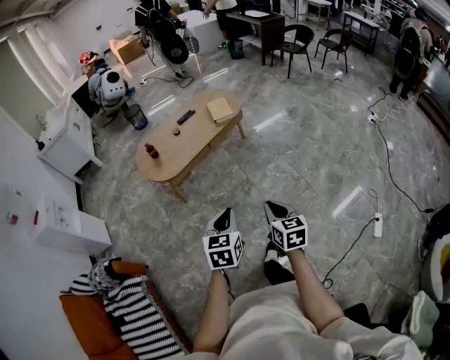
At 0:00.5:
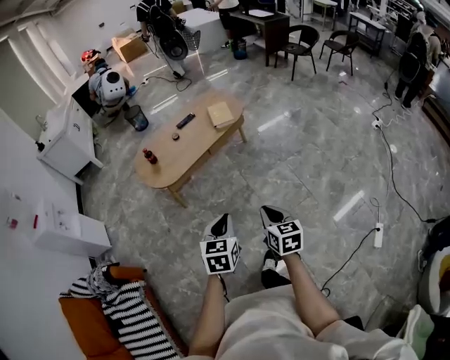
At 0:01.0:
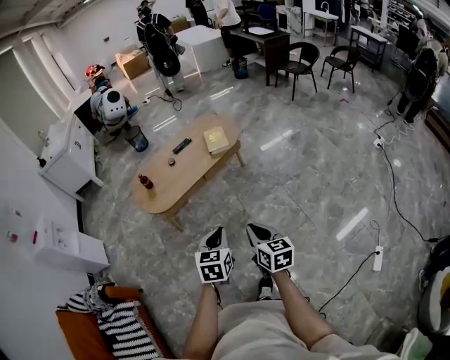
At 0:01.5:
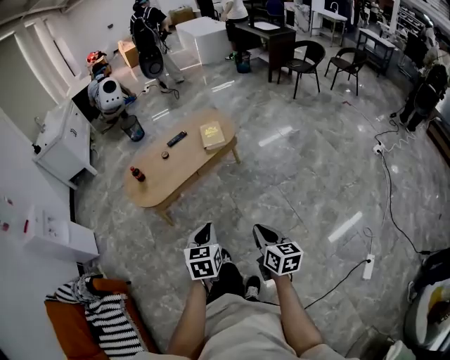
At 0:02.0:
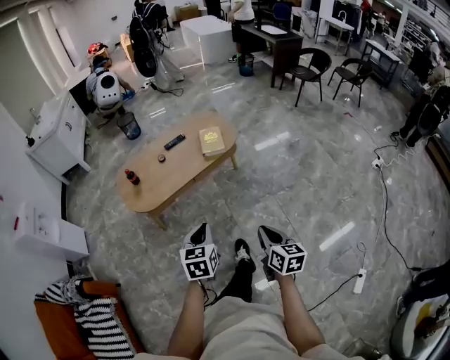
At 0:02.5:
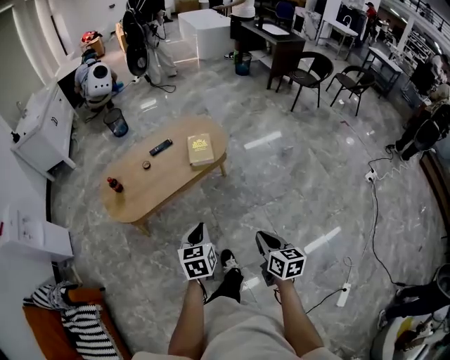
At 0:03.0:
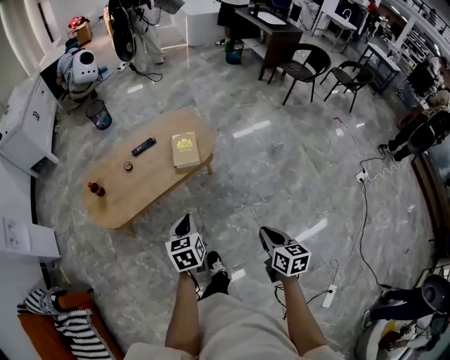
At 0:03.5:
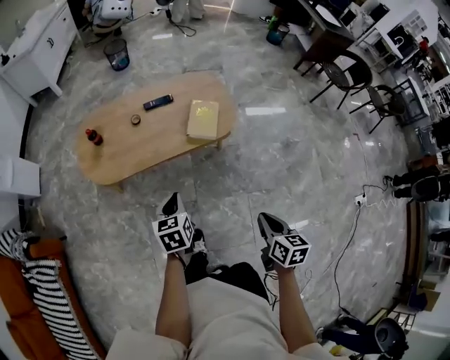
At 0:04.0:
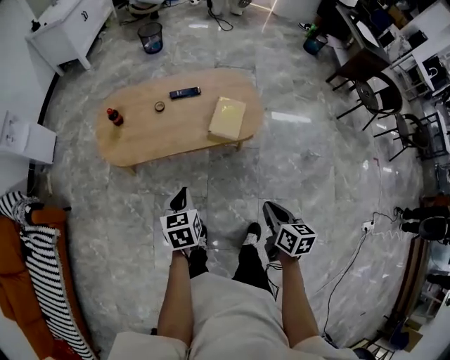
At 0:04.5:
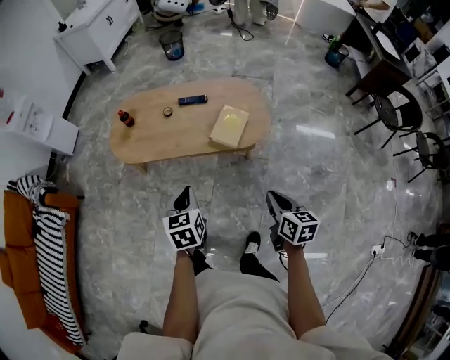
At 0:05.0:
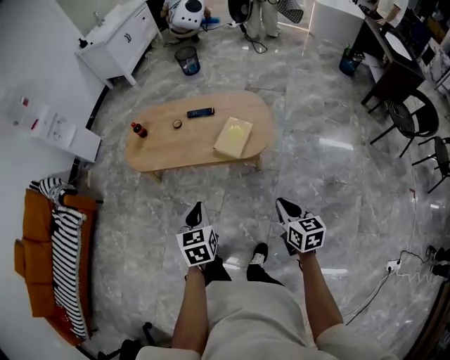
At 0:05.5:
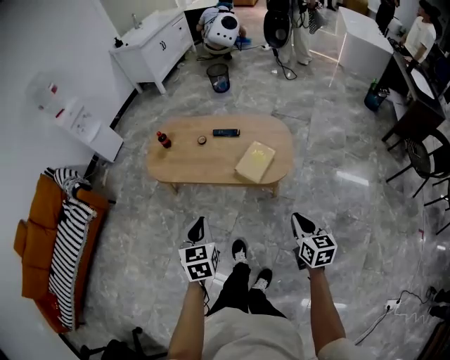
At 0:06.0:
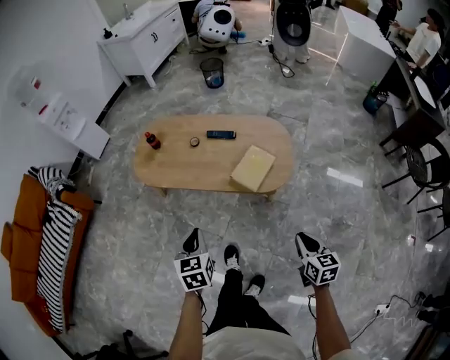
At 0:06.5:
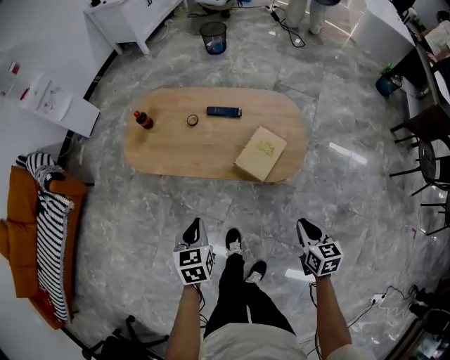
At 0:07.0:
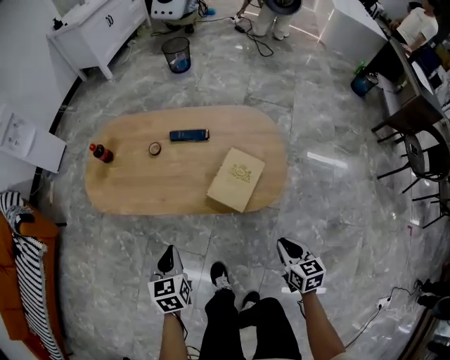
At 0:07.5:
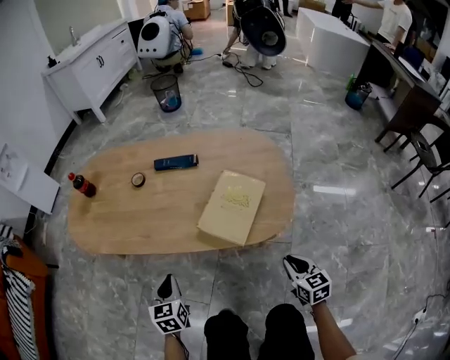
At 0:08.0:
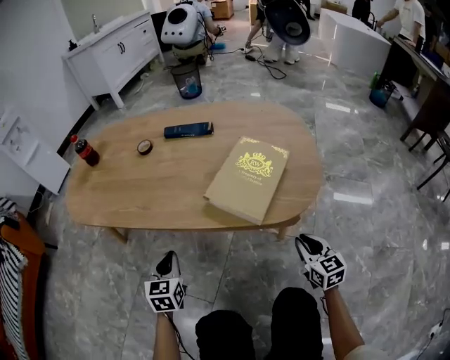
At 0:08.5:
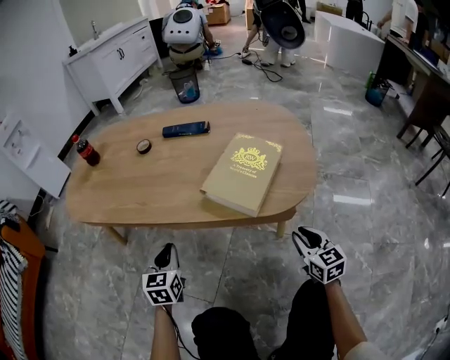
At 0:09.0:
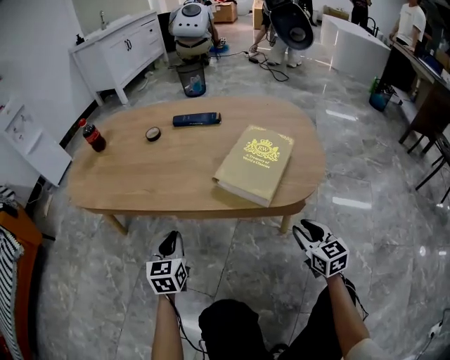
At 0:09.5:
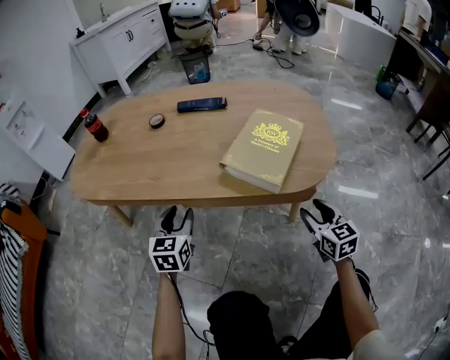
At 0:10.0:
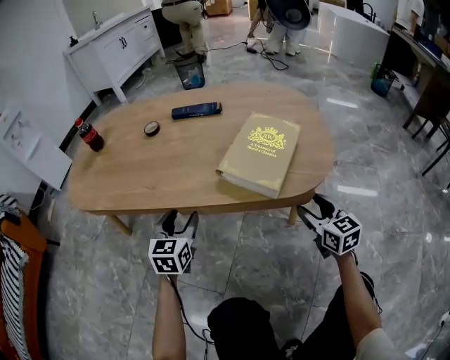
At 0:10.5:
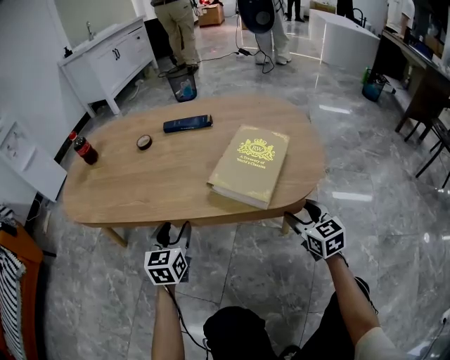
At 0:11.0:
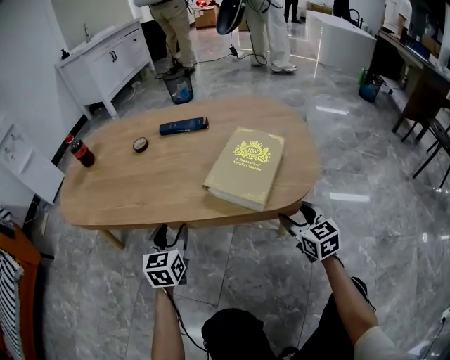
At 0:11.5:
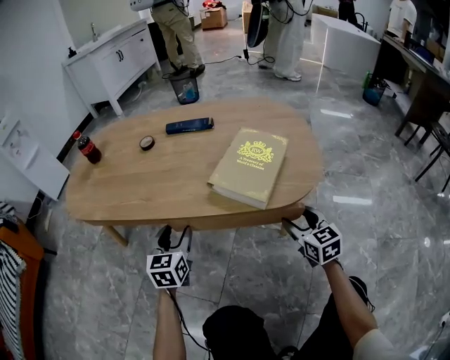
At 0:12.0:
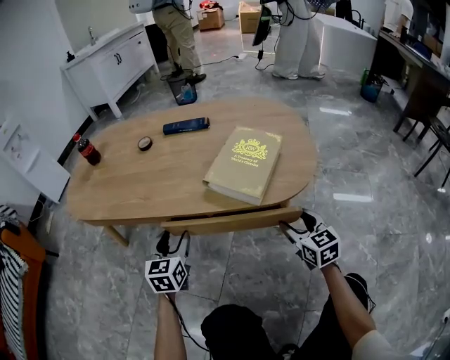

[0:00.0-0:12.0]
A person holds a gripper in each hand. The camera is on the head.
0:00.0 to 0:02.0: Both grippers travel together forward and to the right, some 25 cm.
0:02.0 to 0:04.0: The right gripper travels forward and to the right by some 35 cm, and changes its angle by approximately 30 degrees. Meanwhile the left gripper shifts roughly 30 cm forward, and rotates approximately 30 degrees.
0:04.0 to 0:06.0: The right gripper goes about 20 cm to the right, and turns by roughly 30 degrees. The left gripper is displaced to the right by about 10 cm, and turns by roughly 20 degrees.
0:06.0 to 0:08.0: The left gripper shifts about 50 cm downward. Meanwhile the right gripper shifts approximately 50 cm downward and forward.
0:08.0 to 0:10.0: The right gripper changes place by approximately 5 cm, and opens. Meanwhile the left gripper travels forward by some 5 cm, and opens.
0:10.0 to 0:12.0: The grippers make only small movements.

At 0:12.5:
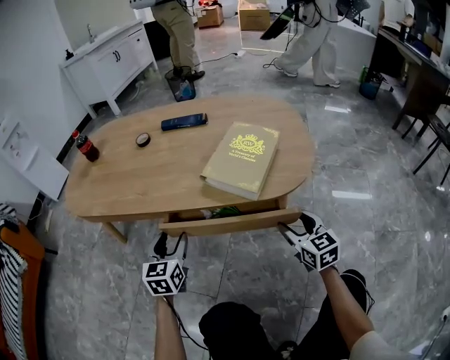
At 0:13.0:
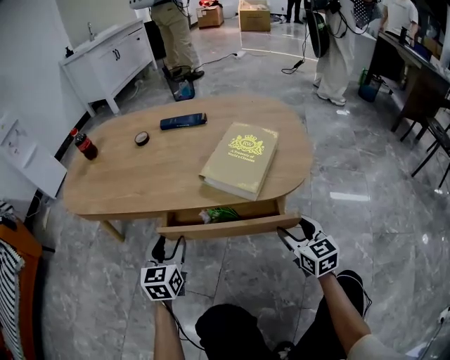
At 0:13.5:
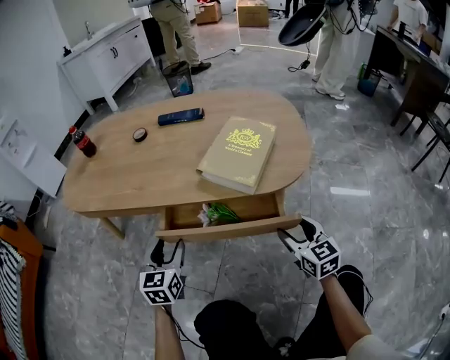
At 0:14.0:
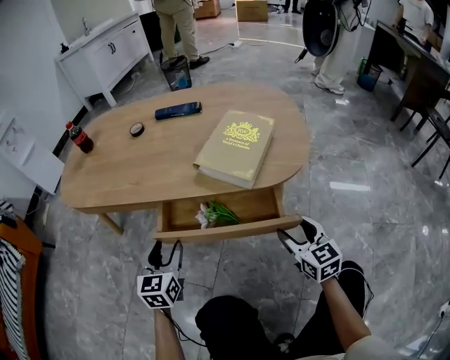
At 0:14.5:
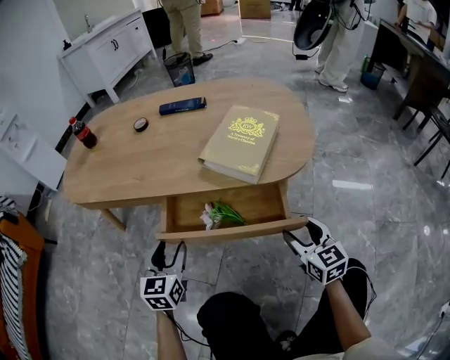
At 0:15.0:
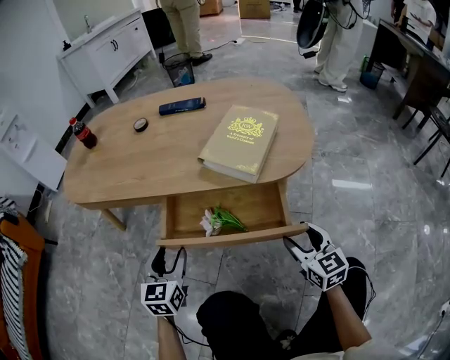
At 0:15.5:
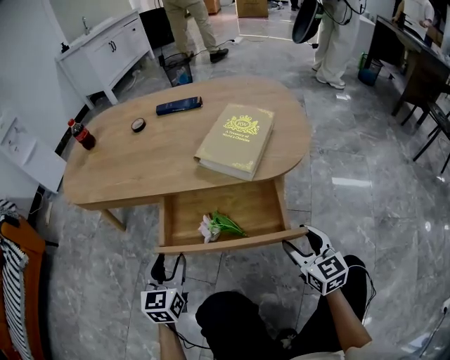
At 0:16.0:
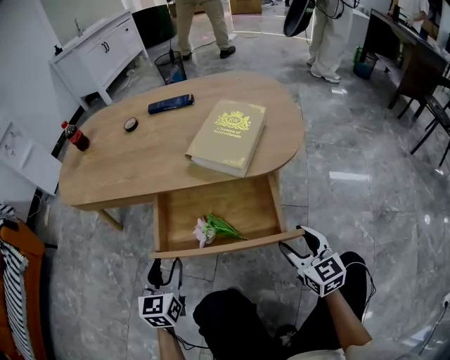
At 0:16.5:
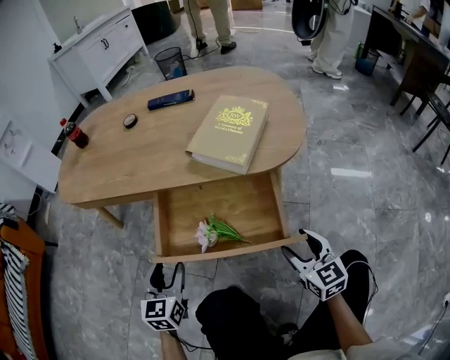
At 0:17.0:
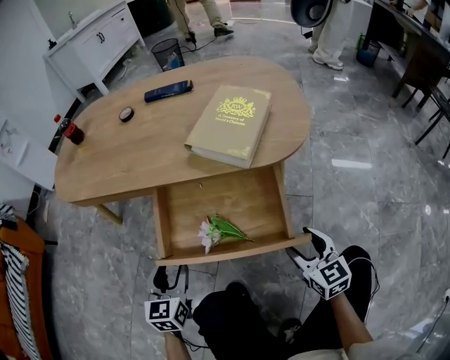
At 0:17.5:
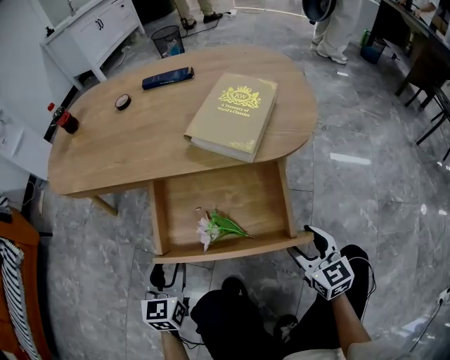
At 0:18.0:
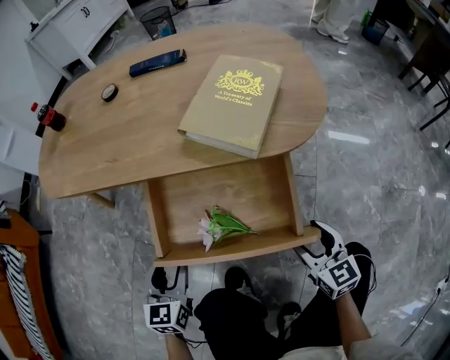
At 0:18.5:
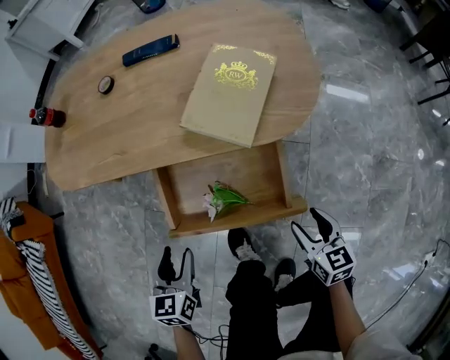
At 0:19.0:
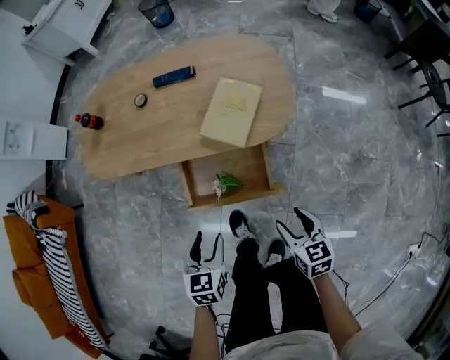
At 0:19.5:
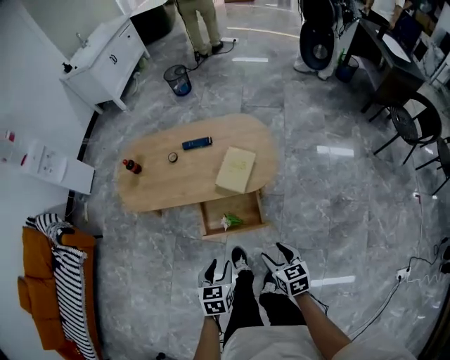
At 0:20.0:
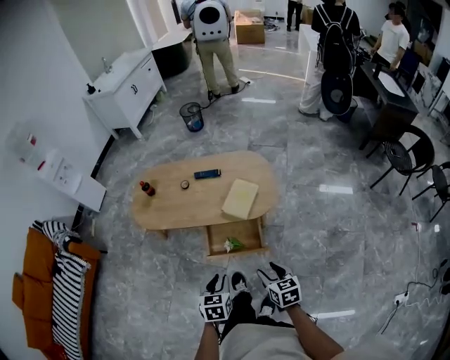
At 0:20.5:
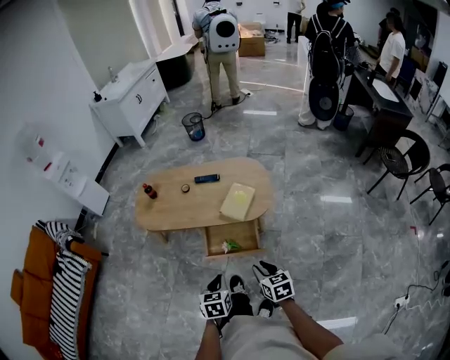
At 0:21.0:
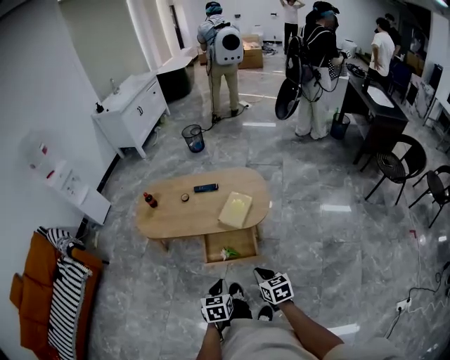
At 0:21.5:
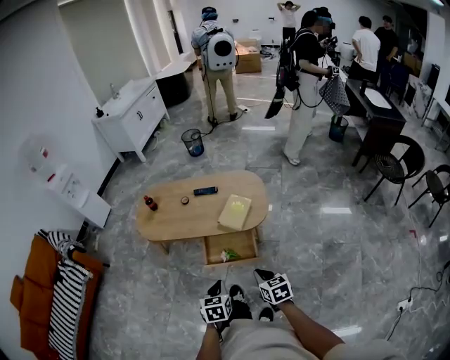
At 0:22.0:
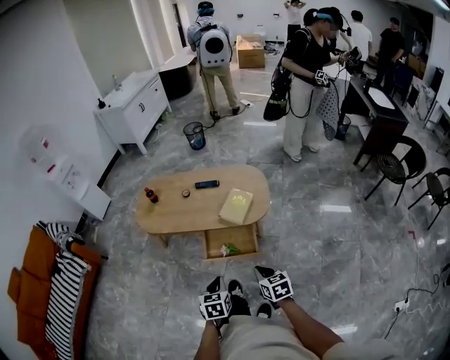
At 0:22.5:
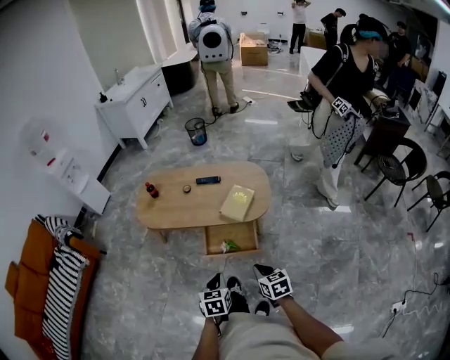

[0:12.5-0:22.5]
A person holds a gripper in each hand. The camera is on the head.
0:12.5 to 0:14.5: Both grippers move backward, some 5 cm.
0:14.5 to 0:16.5: Both grippers travel together backward, some 5 cm.
0:16.5 to 0:18.5: The left gripper goes roughly 5 cm upward; the right gripper changes its angle by roughly 20 degrees.
0:18.5 to 0:20.5: The left gripper moves upward and backward, roughly 40 cm, and closes up. The right gripper travels upward by approximately 40 cm, and closes up.
0:20.5 to 0:22.5: The right gripper closes up.

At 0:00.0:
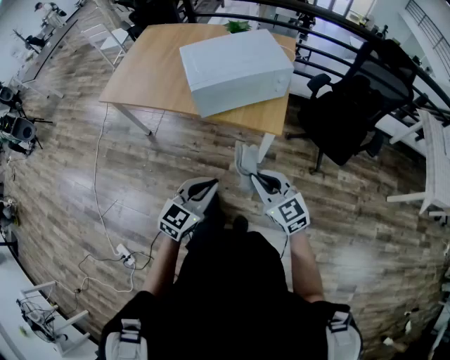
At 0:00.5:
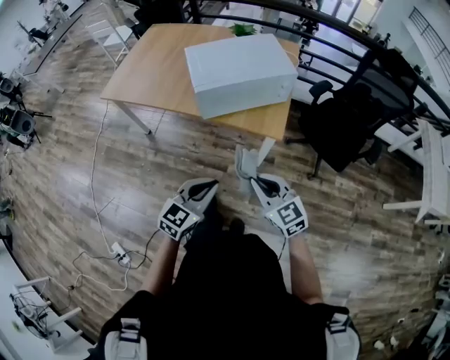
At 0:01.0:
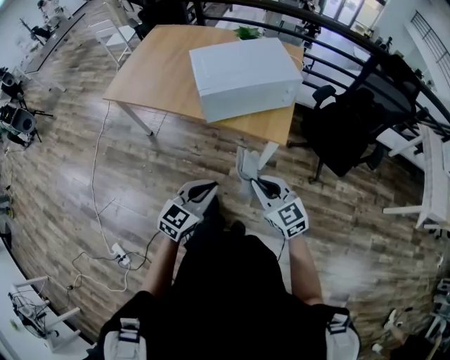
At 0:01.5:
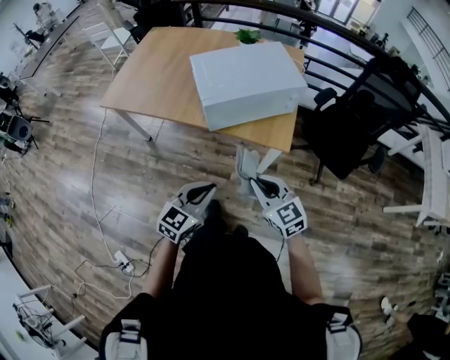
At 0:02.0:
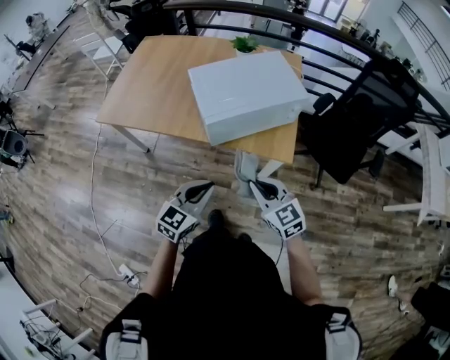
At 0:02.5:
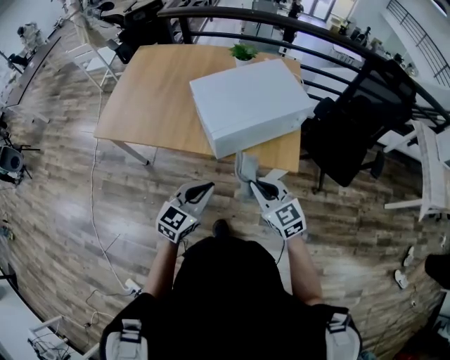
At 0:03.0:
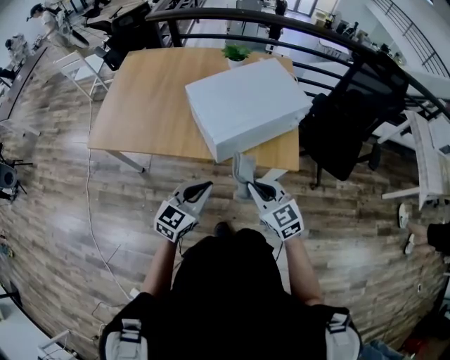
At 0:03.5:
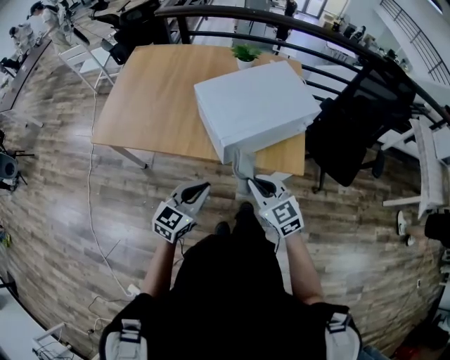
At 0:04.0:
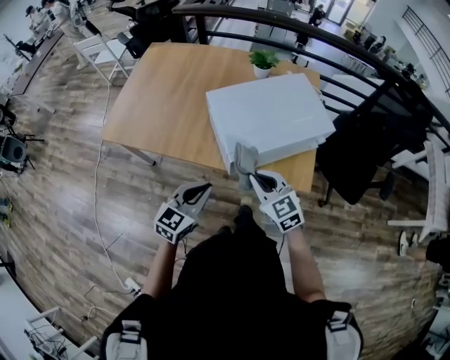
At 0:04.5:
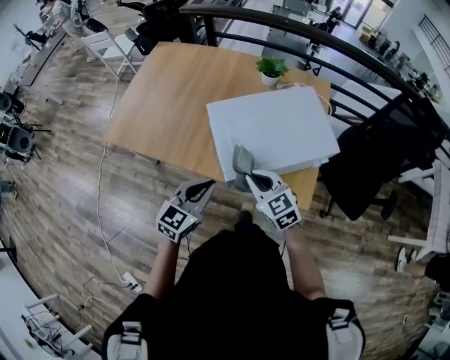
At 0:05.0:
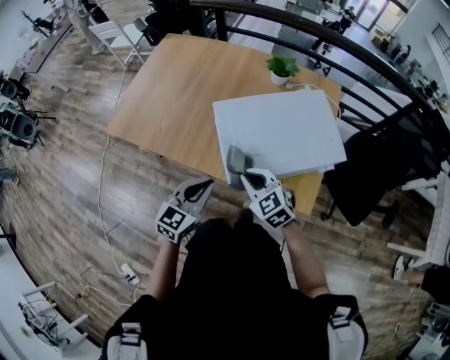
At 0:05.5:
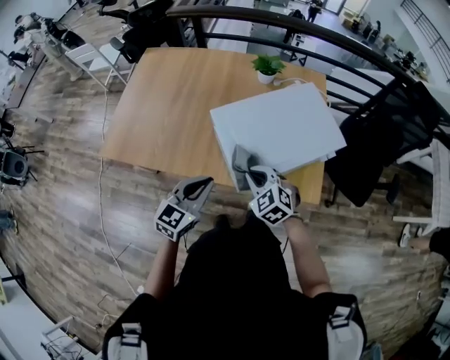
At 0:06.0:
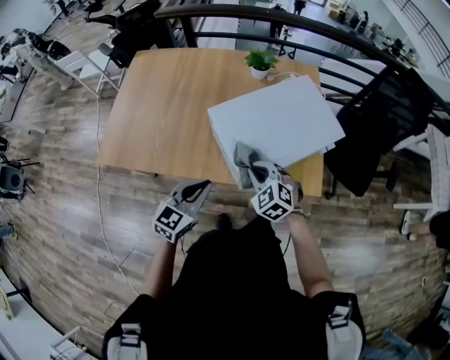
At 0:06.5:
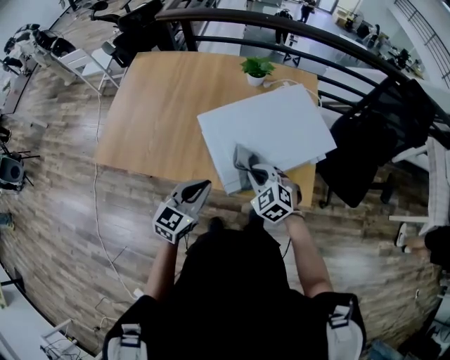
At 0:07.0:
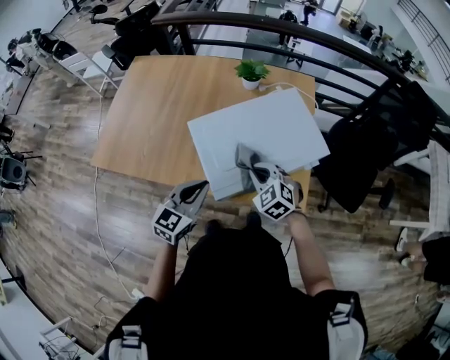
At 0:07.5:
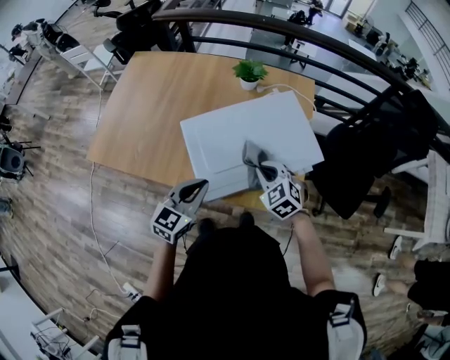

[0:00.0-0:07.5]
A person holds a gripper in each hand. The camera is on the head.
0:00.0 to 0:02.0: Both grippers move forward and to the left, approximately 15 cm.
0:02.0 to 0:04.0: Both grippers travel together forward and to the left, approximately 20 cm.
0:04.0 to 0:05.5: Both grippers travel together forward, approximately 10 cm. The right gripper rotates some 20 degrees.
0:05.5 to 0:07.5: The right gripper moves to the right and forward, about 15 cm, while the left gripper heads to the right, covering approximately 10 cm.
